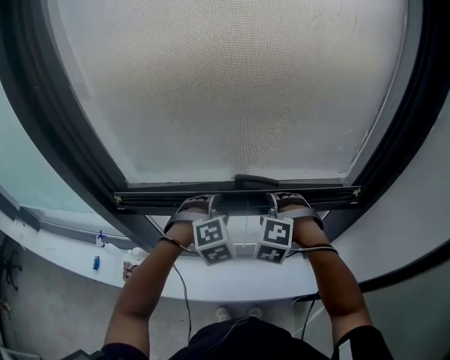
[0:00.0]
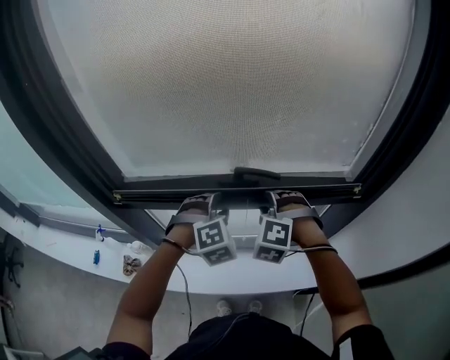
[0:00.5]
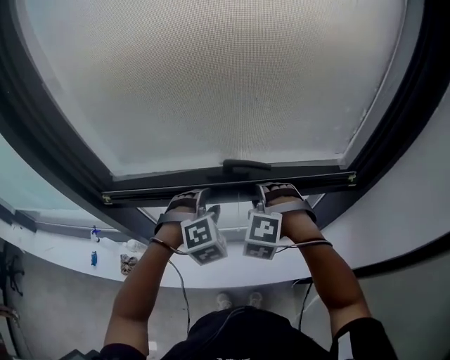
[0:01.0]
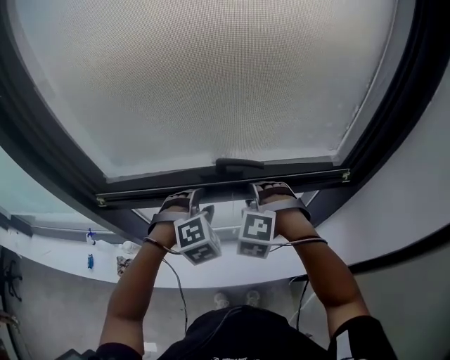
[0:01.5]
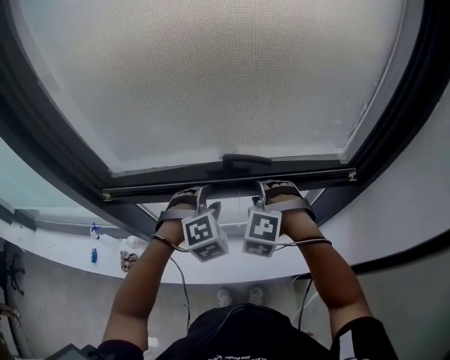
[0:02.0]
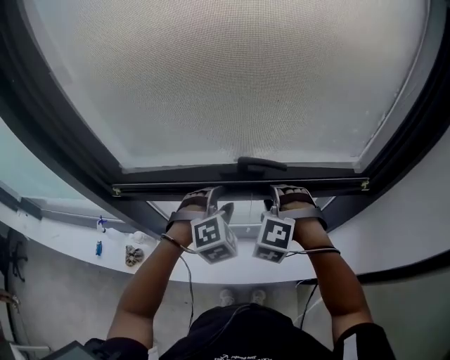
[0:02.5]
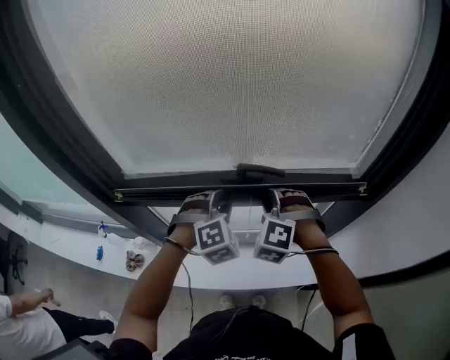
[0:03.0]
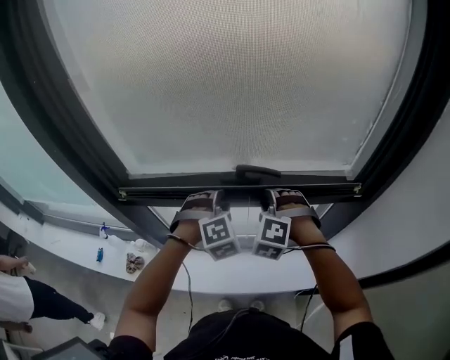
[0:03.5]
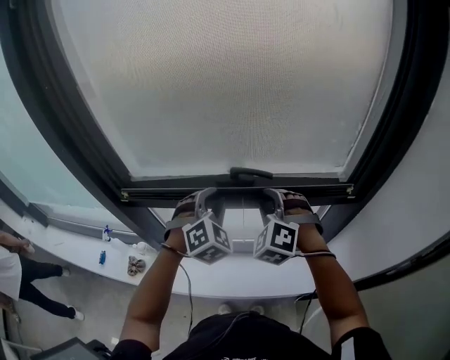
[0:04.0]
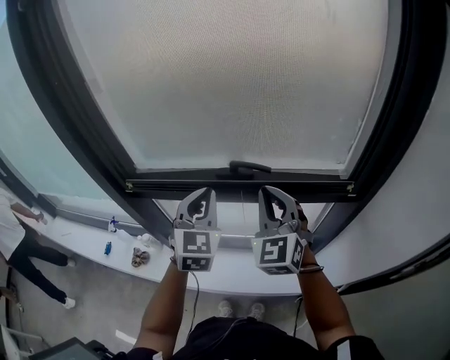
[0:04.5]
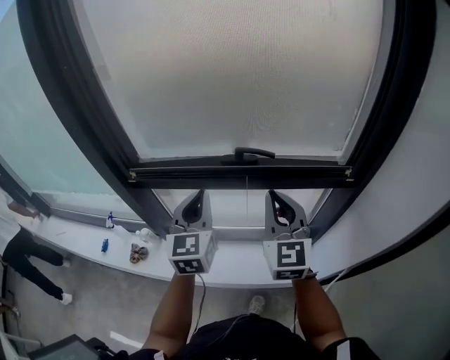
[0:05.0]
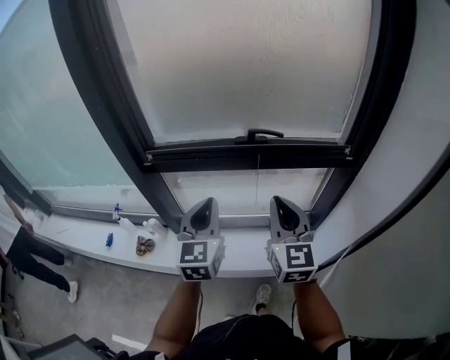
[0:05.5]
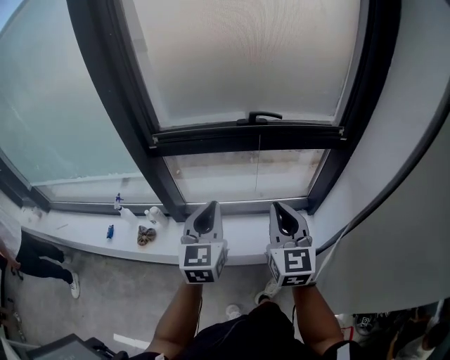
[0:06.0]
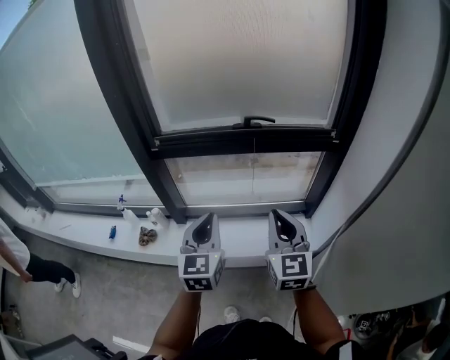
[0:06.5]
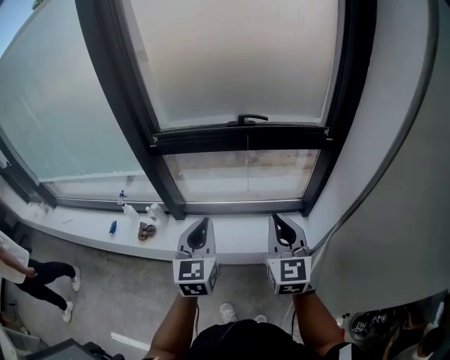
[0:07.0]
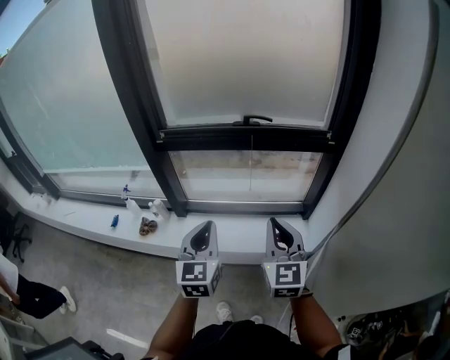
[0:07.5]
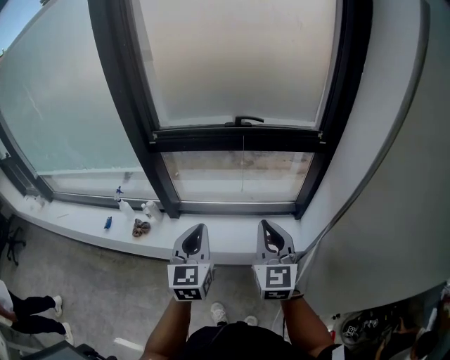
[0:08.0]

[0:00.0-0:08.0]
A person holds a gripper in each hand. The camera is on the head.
0:00.0 to 0:02.0: The grippers make only small movements.
0:02.0 to 0:04.0: The grippers both shift upward by roughly 5 cm.
0:04.0 to 0:06.0: Both grippers move backward, about 30 cm. The left gripper rotates around the line of its fingers by about 50 degrees, counterclockwise from behind, and closes its fingers. The right gripper rotates around the line of its fingers by some 60 degrees, clockwise from behind, and closes its fingers.
0:06.0 to 0:08.0: Both grippers move backward, about 15 cm.

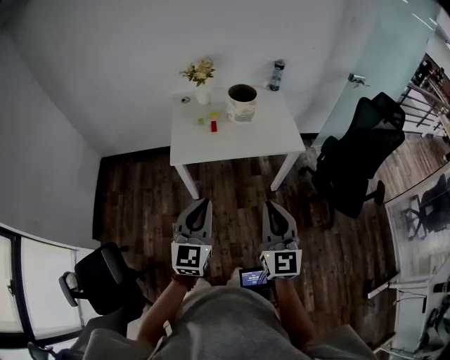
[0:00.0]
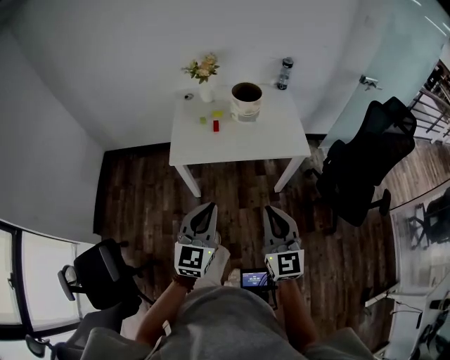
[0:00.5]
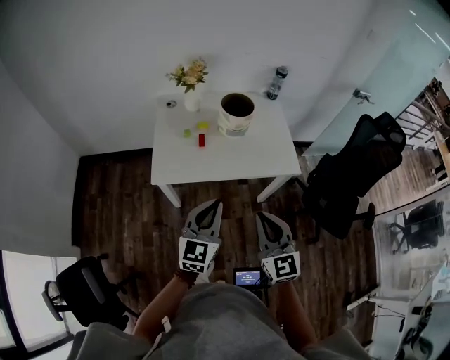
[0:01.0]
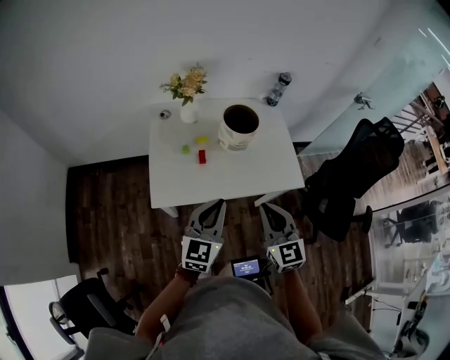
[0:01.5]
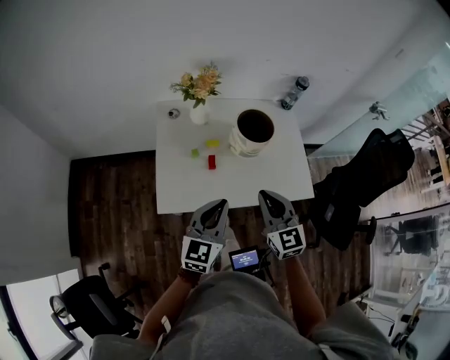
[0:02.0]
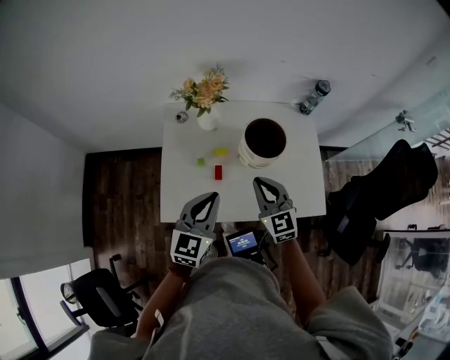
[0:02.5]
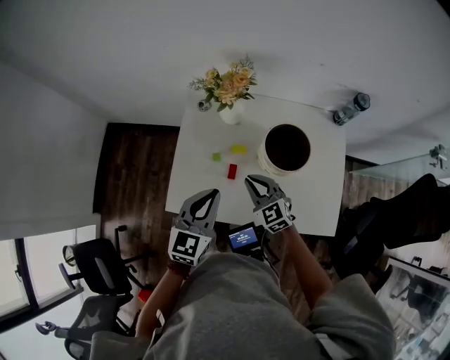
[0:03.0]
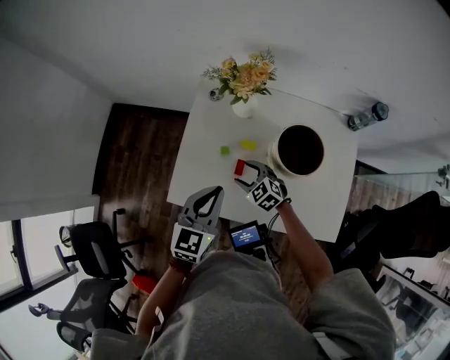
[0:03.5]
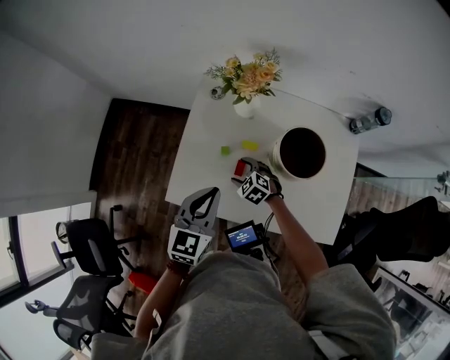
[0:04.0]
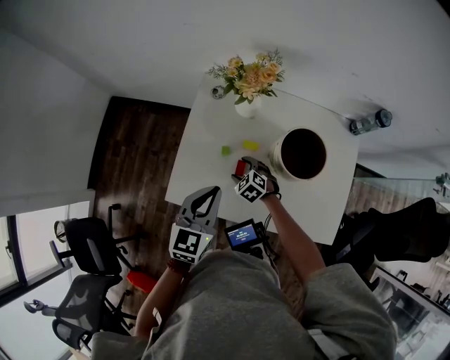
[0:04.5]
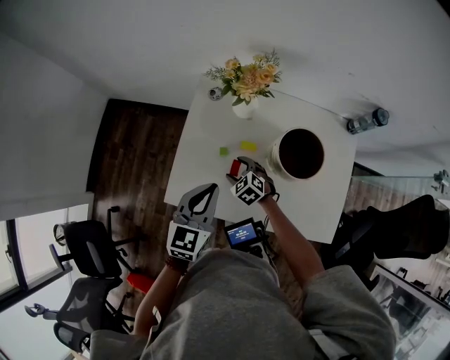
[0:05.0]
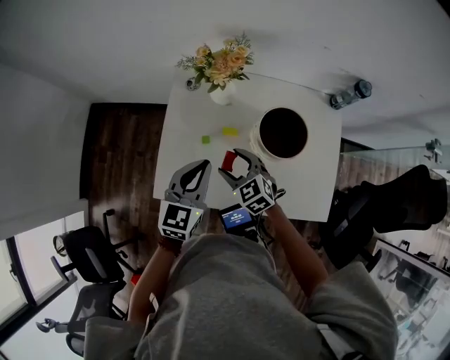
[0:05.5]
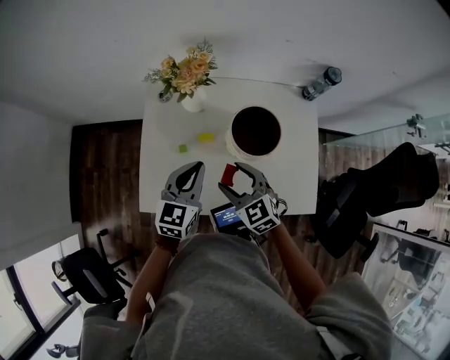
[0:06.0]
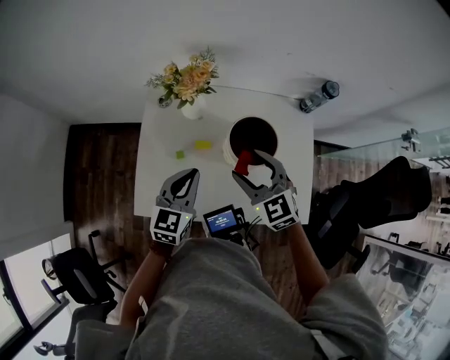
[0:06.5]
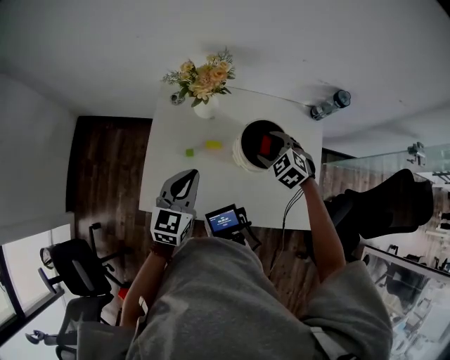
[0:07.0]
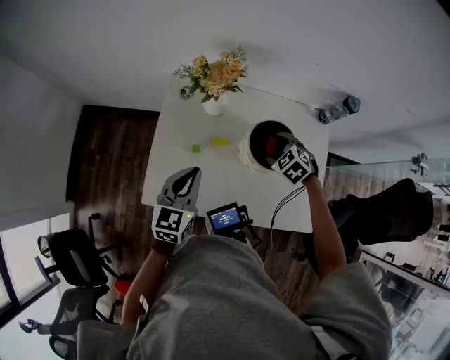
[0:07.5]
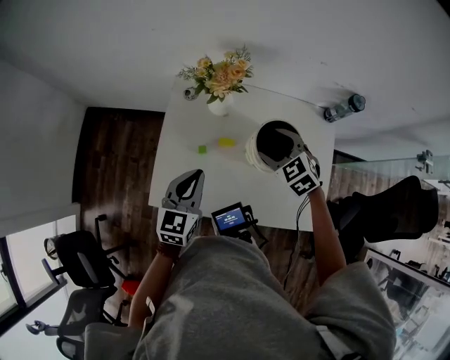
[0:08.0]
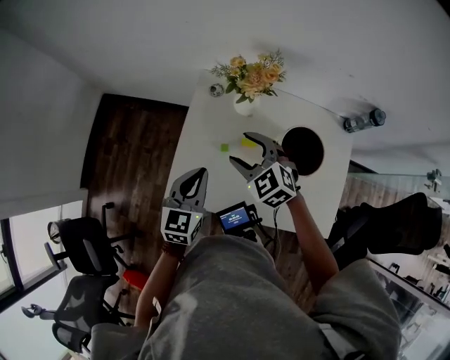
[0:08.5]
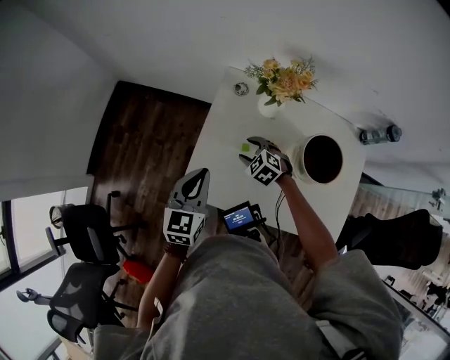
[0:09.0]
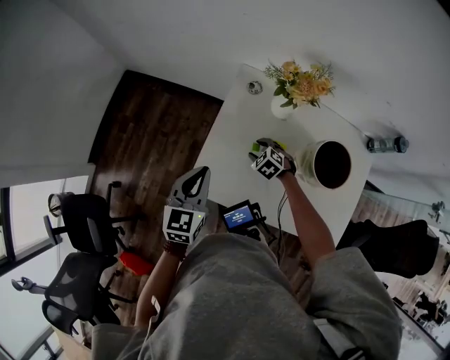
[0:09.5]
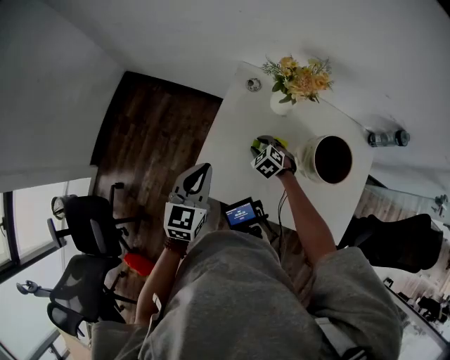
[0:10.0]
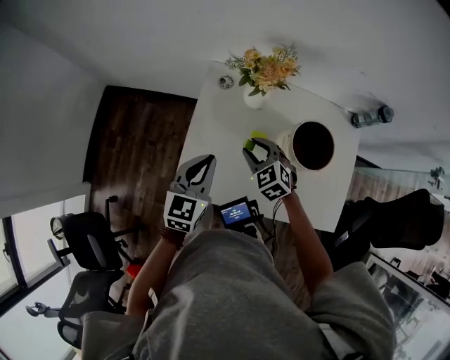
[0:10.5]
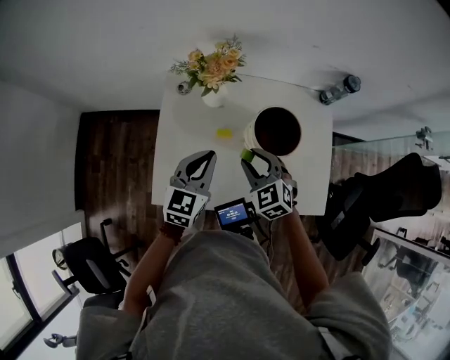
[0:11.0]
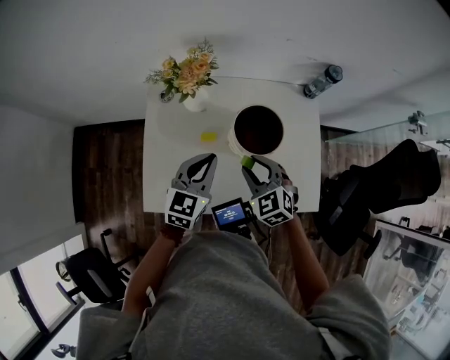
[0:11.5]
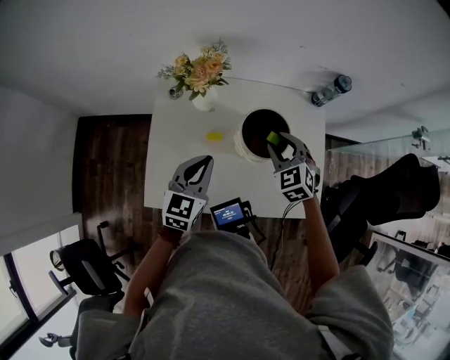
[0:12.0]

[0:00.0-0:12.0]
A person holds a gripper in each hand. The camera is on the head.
0:00.0 to 0:02.0: Both grippers travel together forward, roughly 40 cm. The right gripper turns by roughly 20 degrees.
0:02.0 to 0:04.0: The left gripper changes place by some 15 cm, and rotates about 30 degrees. The right gripper moves downward, approximately 30 cm, tilts its fingers approximately 40 degrees downward, and opens.
0:04.0 to 0:06.0: The left gripper travels to the right by roughly 5 cm; the right gripper travels upward and to the right by roughly 20 cm, and rotates some 30 degrees.
0:06.0 to 0:08.0: The right gripper swings up and down, about 15 cm each way, with 2 reversals; the left gripper heads to the left, covering roughly 5 cm.
0:08.0 to 0:10.0: The right gripper is displaced downward and to the left by some 30 cm, turns by some 20 degrees, and closes. The left gripper moves to the left, about 15 cm.
0:10.0 to 0:12.0: The left gripper moves about 25 cm, and rotates some 20 degrees. Meanwhile the right gripper changes place by about 35 cm, and swivels some 30 degrees.

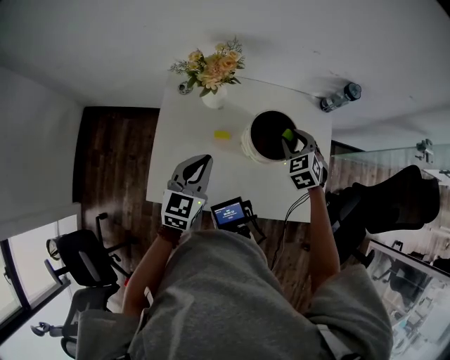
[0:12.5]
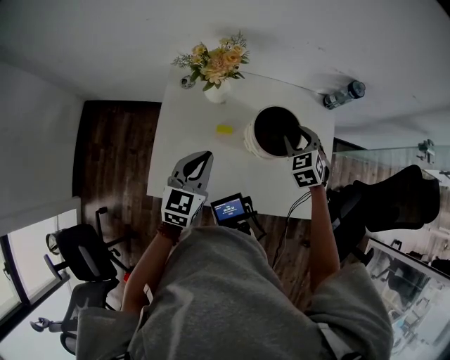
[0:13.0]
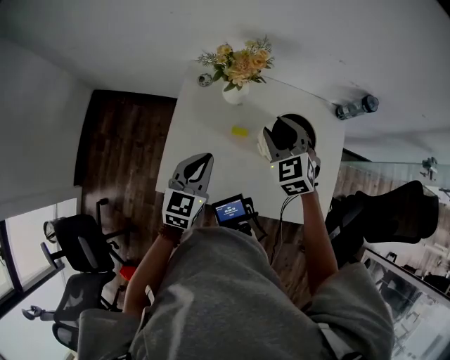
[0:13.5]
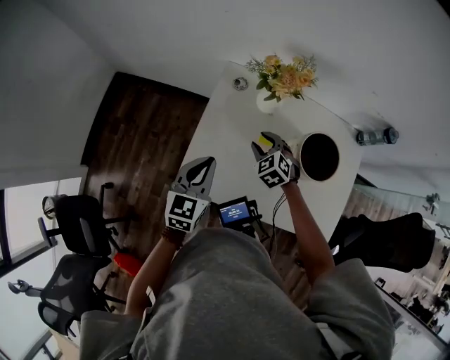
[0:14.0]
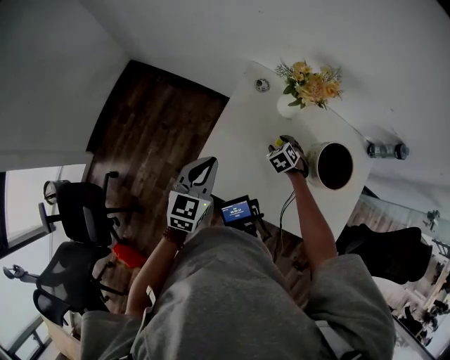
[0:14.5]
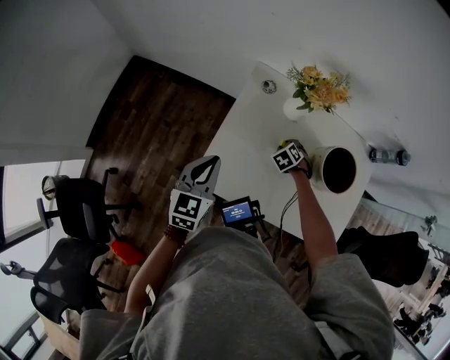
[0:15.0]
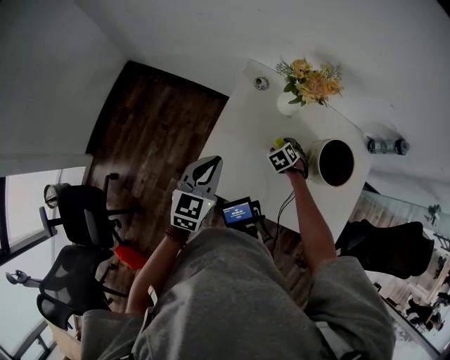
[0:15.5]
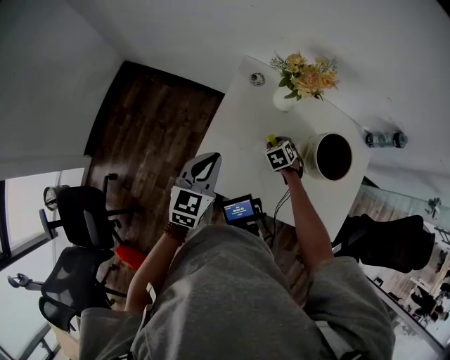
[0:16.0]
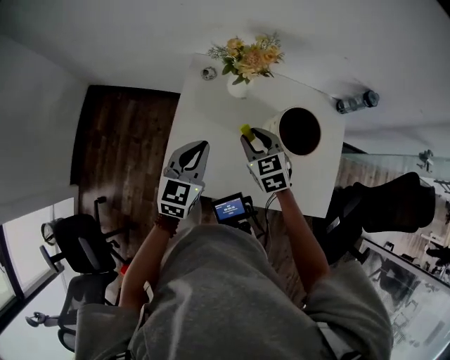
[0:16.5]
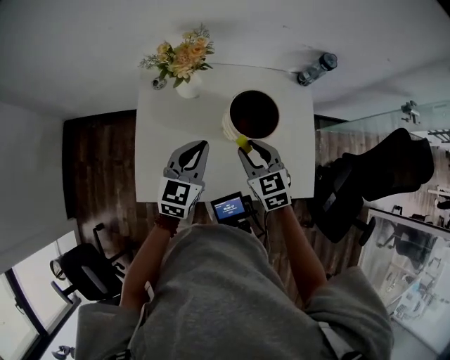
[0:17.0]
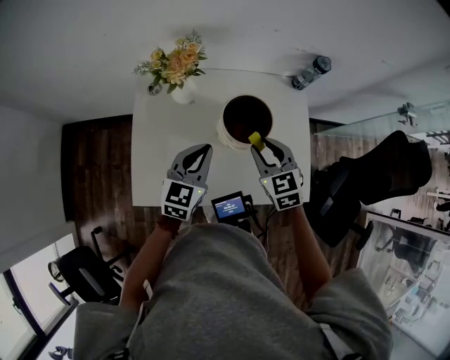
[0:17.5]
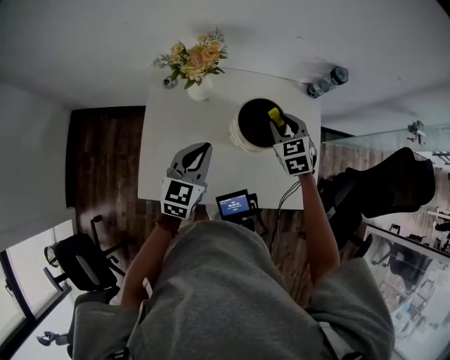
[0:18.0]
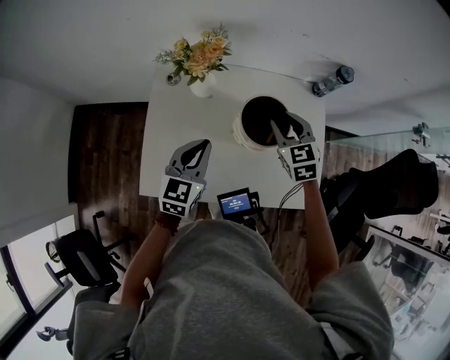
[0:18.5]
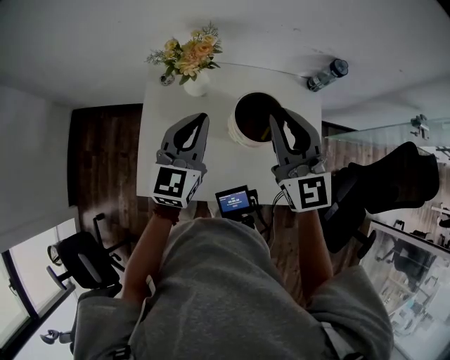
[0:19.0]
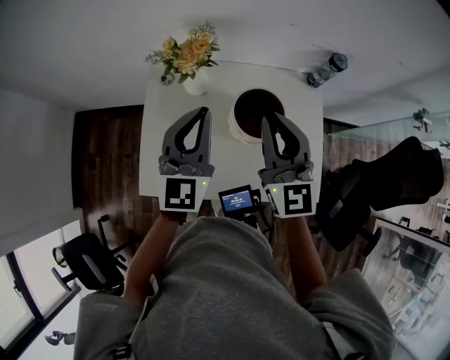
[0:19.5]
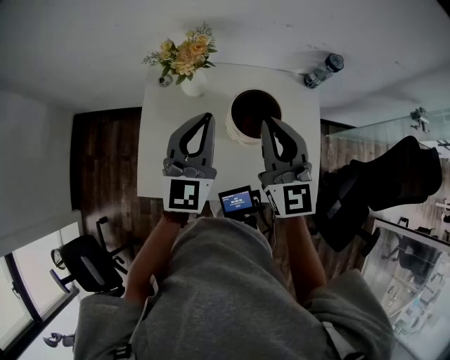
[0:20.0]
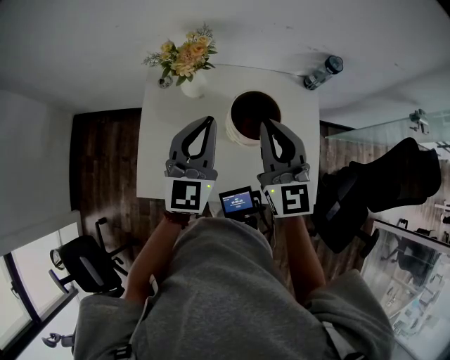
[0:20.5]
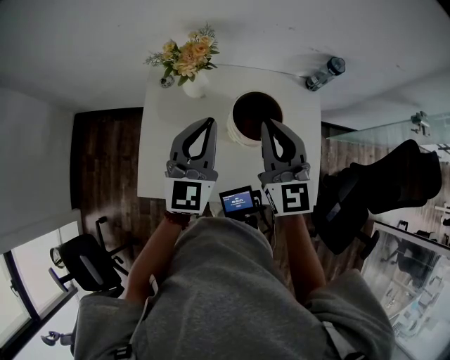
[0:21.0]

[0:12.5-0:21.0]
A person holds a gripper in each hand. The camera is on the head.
0:12.5 to 0:14.5: The left gripper goes approximately 20 cm to the left, while the right gripper is displaced to the left and downward by approximately 30 cm, and turns by about 30 degrees.
0:14.5 to 0:16.5: The right gripper shifts some 20 cm upward, and turns by about 30 degrees. Meanwhile the left gripper moves to the right, some 10 cm.
0:16.5 to 0:19.0: The right gripper travels upward and to the right by approximately 25 cm, and points its fingers roughly 40 degrees further upward. Meanwhile the left gripper shifts approximately 15 cm to the right, upward and forward.
0:19.0 to 0:21.0: The grippers stay close to where they were, moving slightly.
